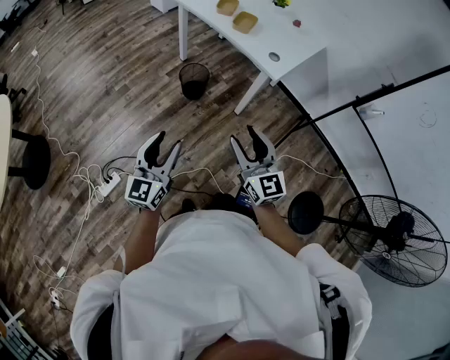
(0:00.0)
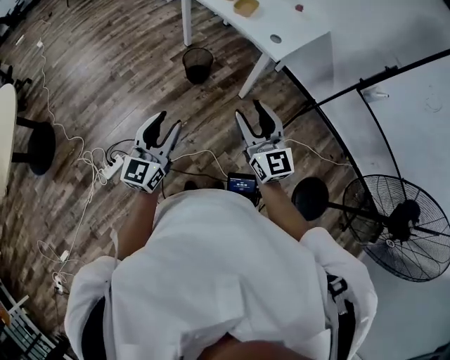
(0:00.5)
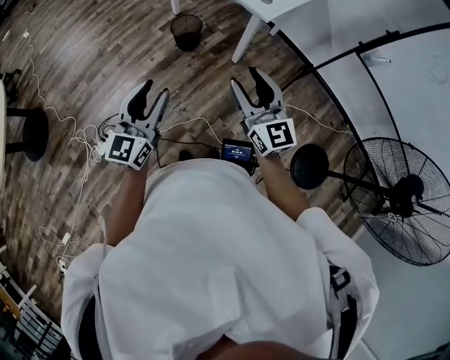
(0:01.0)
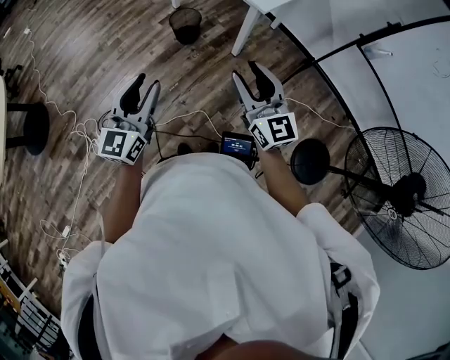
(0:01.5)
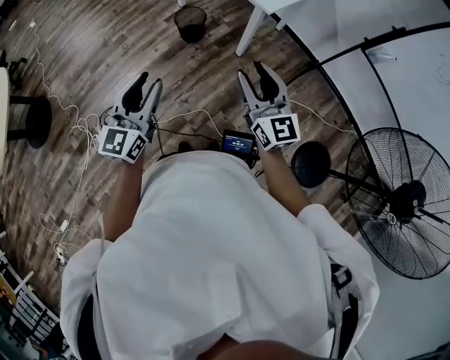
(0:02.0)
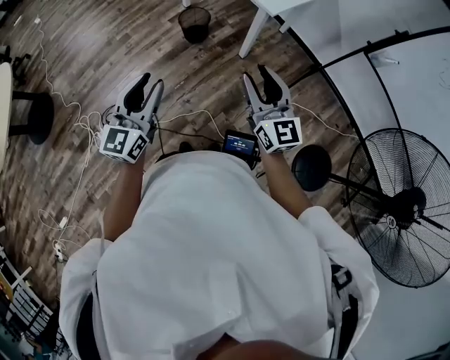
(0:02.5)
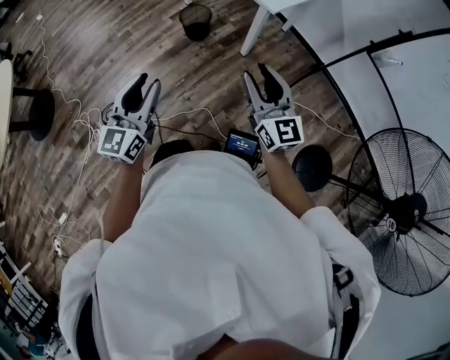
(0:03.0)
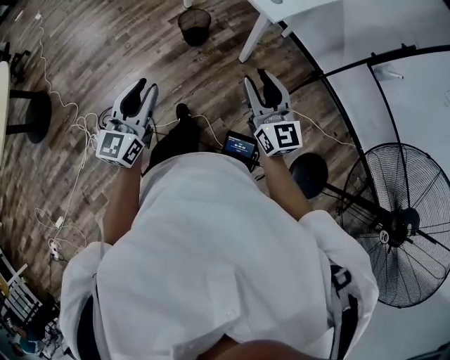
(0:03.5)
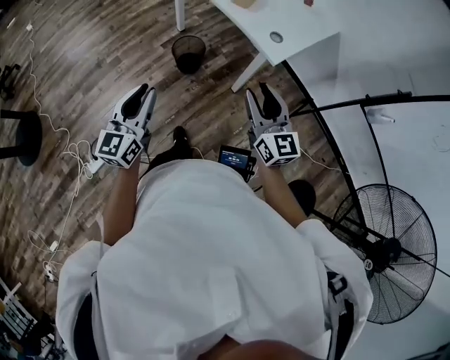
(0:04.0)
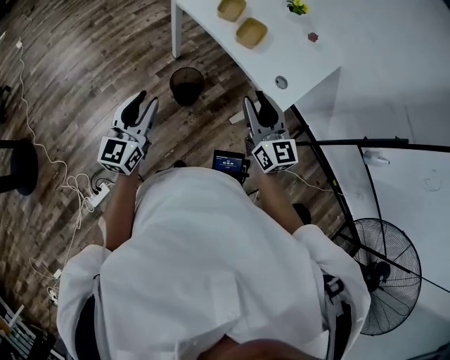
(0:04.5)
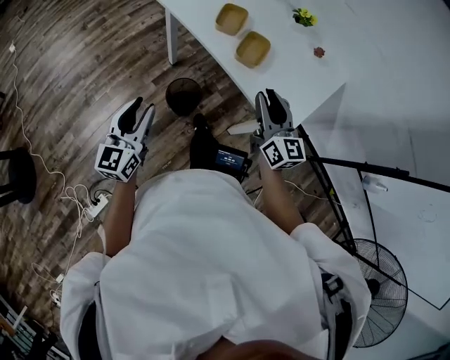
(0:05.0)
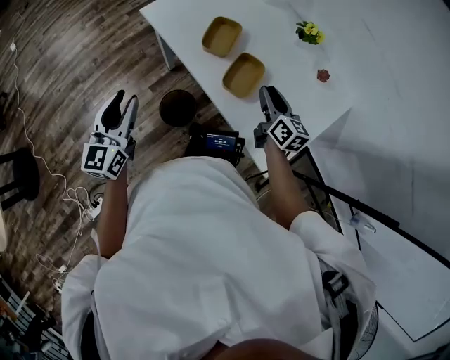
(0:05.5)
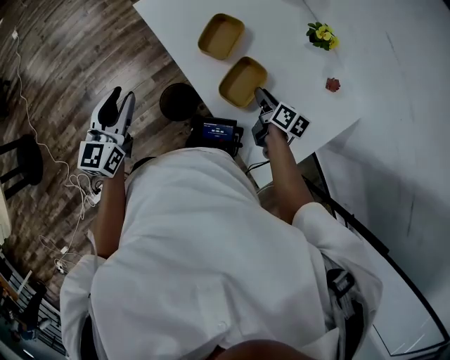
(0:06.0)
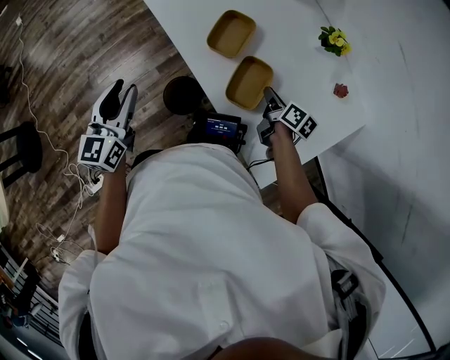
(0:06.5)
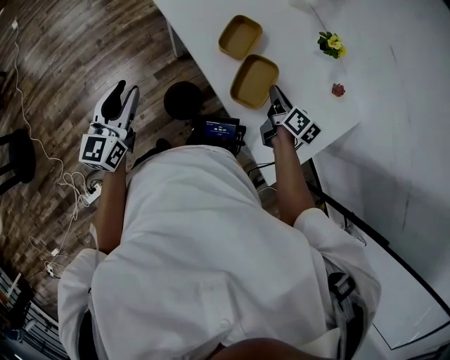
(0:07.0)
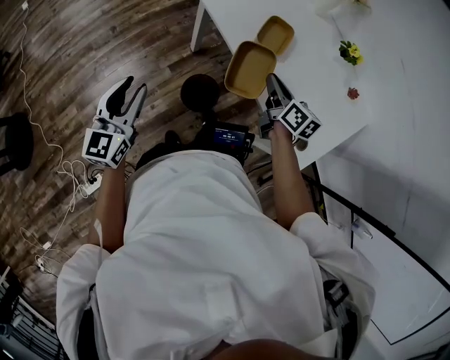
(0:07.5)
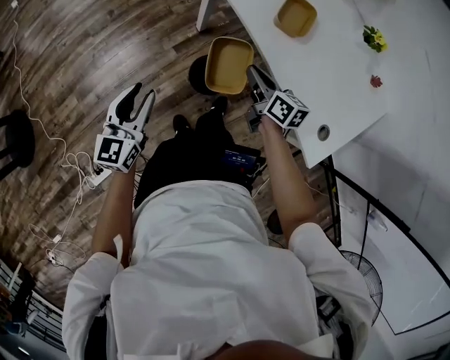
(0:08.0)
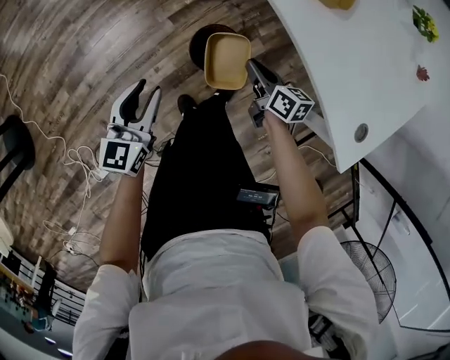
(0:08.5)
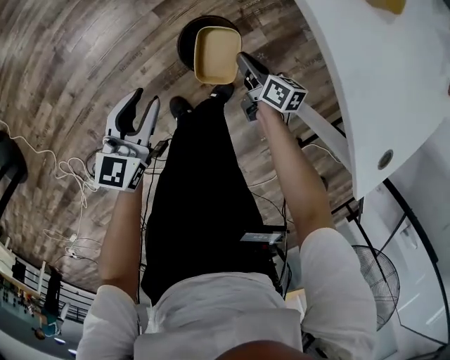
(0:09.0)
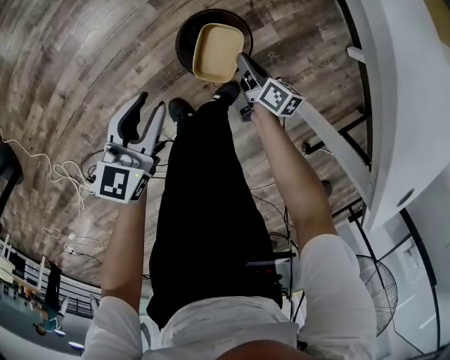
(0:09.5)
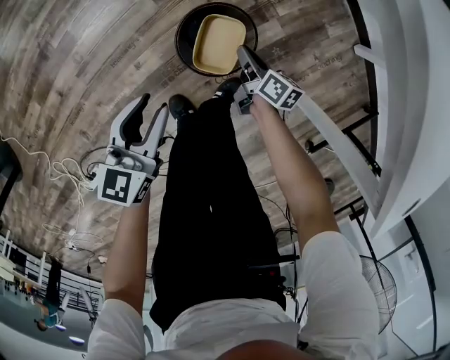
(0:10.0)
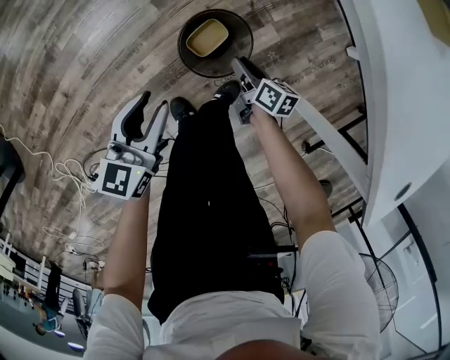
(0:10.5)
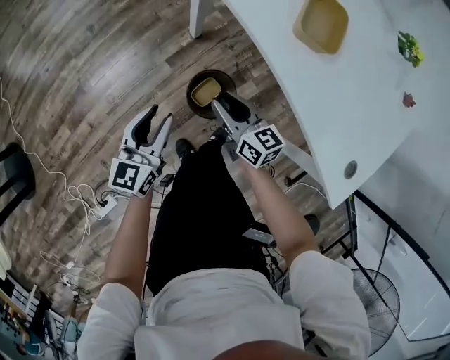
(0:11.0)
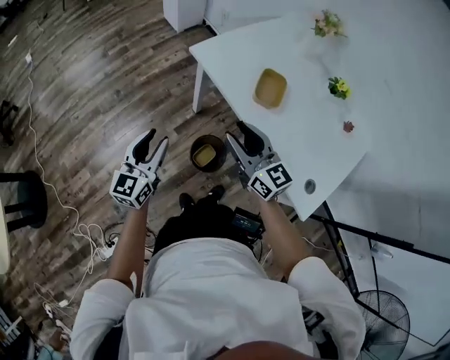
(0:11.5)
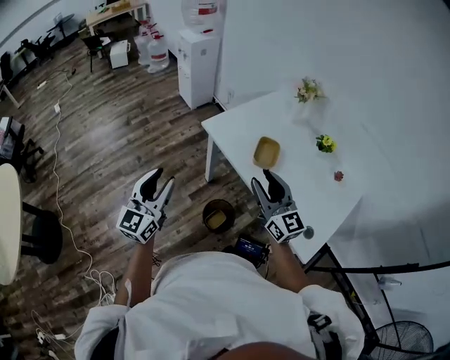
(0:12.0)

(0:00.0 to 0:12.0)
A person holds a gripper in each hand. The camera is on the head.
0:00.0 - 0:02.0: The right gripper goes some 10 cm to the right; the left gripper heads to the right and backward, covering about 10 cm.
0:02.0 - 0:04.0: The two grippers go roughly 20 cm forward.
0:04.0 - 0:06.0: Both grippers are carried forward, approximately 60 cm. The right gripper angles its fingers downward, by some 40 degrees.
0:06.0 - 0:08.0: The left gripper shifts about 25 cm to the left, backward and downward. The right gripper shifts some 30 cm to the left, and closes its fingers.
0:08.0 - 0:10.0: The grippers both shift downward by about 50 cm. The right gripper rotates some 20 degrees.
0:10.0 - 0:12.0: The grippers both shift upward by some 70 cm. The right gripper twists some 60 degrees counterclockwise, seen from behind, and opens. The left gripper tilts its fingers some 30 degrees upward.

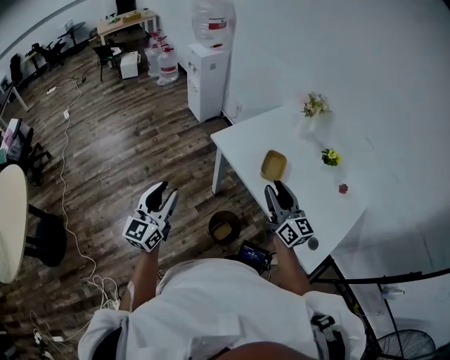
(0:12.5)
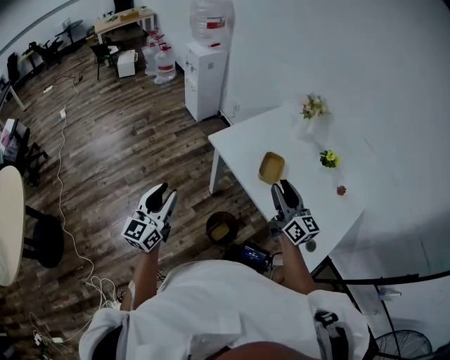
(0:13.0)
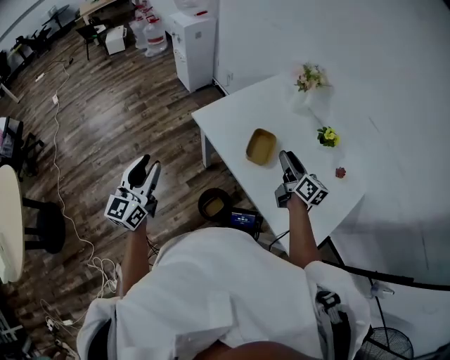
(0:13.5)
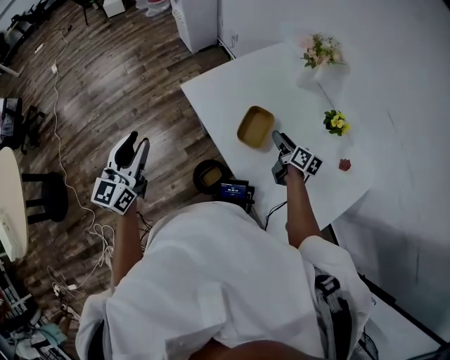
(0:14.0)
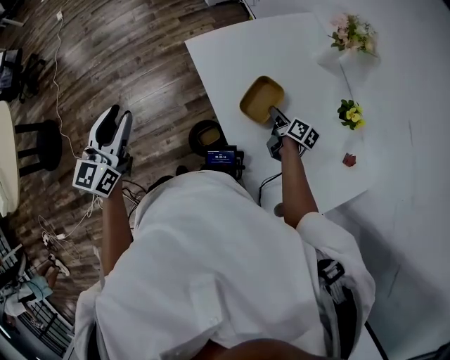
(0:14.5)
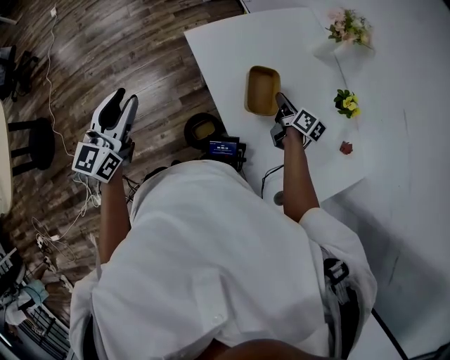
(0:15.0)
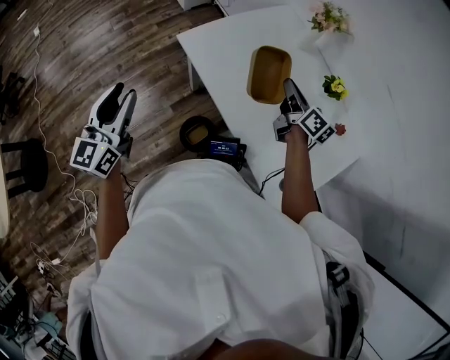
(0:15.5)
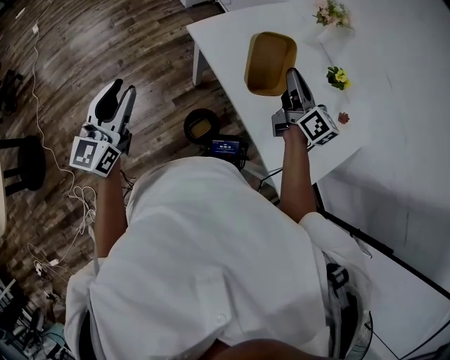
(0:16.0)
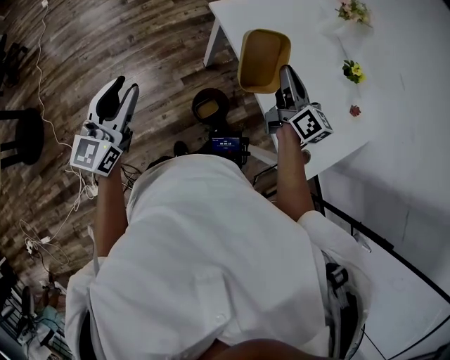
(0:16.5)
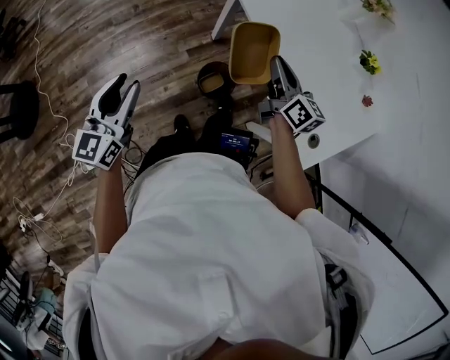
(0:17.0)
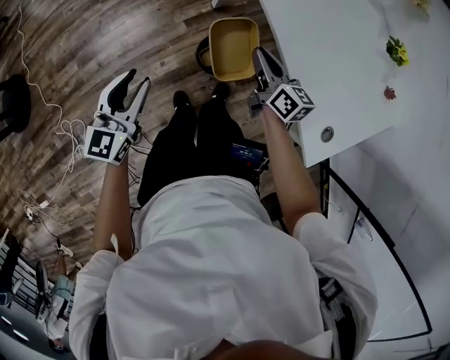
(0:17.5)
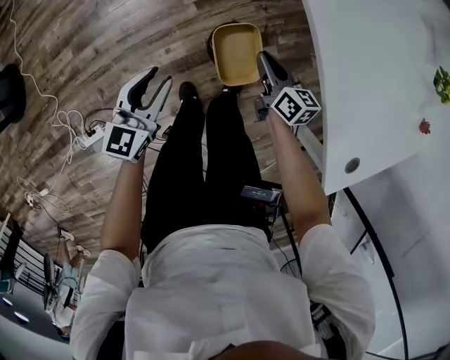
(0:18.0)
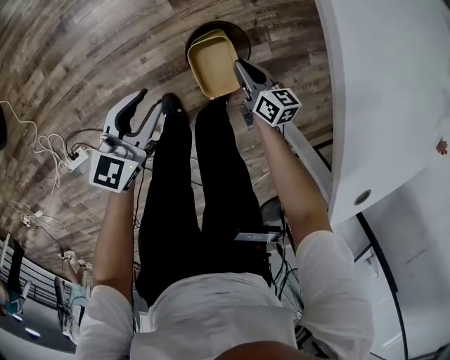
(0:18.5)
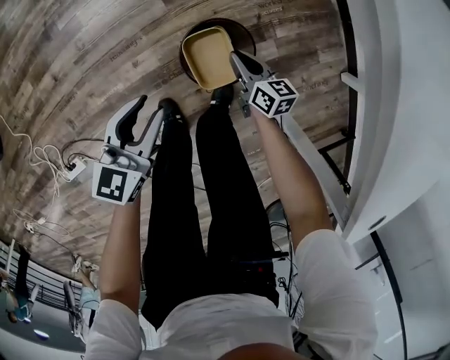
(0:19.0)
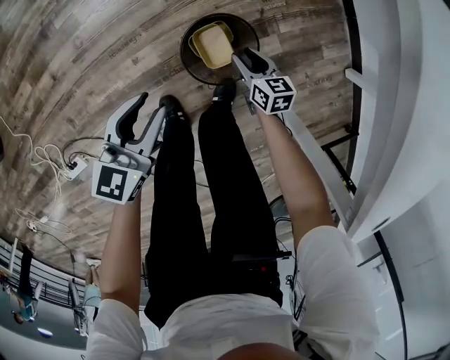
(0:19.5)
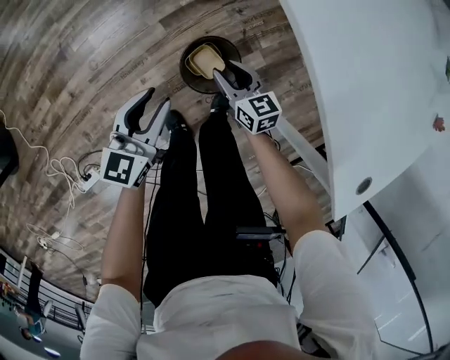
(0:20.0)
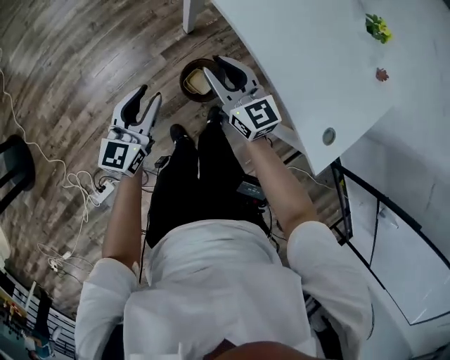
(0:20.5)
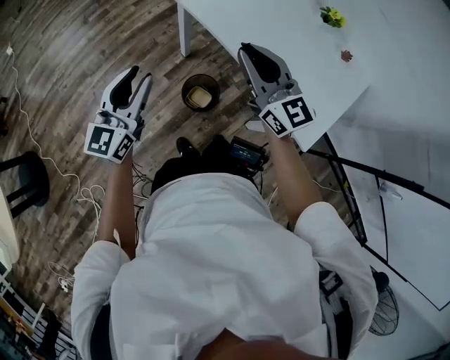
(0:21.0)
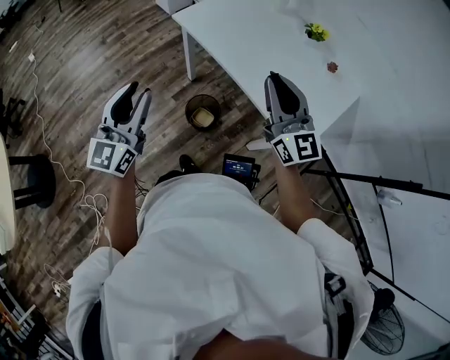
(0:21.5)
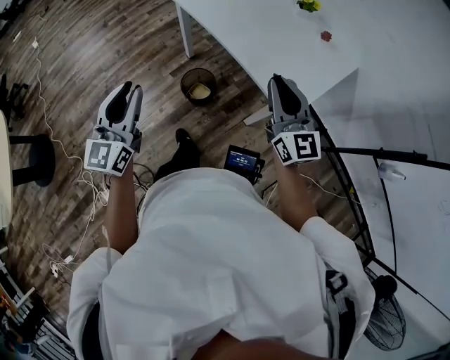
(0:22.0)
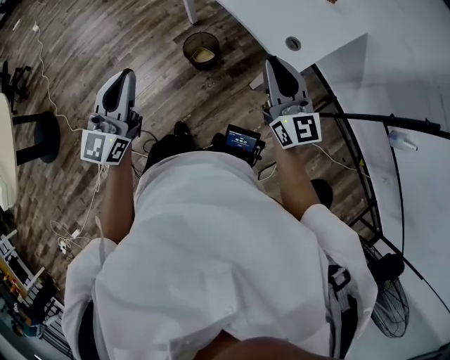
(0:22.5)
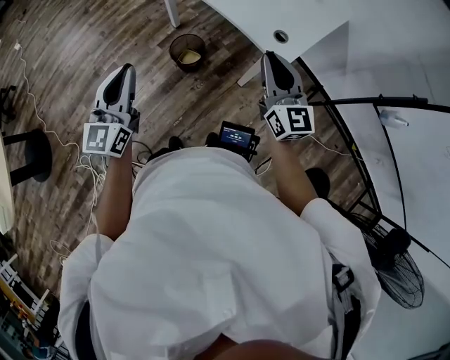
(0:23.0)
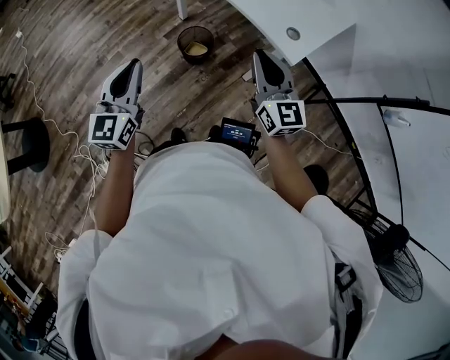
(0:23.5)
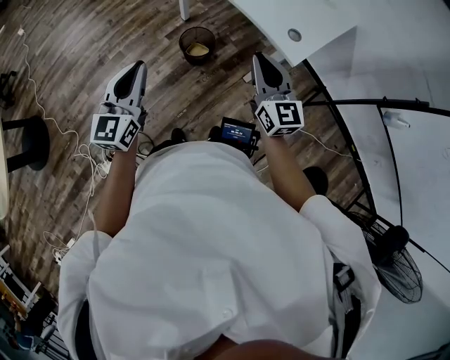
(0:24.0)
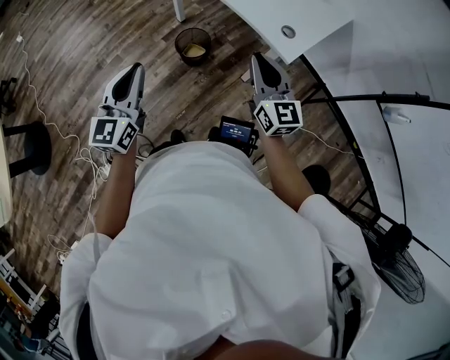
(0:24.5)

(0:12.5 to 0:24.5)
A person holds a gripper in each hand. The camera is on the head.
0:12.5 - 0:14.5: The right gripper travels downward, forward and to the right by about 50 cm, and points its fingers about 40 degrees further downward, while the left gripper shifts some 20 cm forward and to the right, and swivels about 20 degrees.
0:14.5 - 0:16.5: The left gripper shifts approximately 20 cm backward and to the left. Meanwhile the right gripper heads upward, to the left and backward, covering approximately 35 cm, and turns by some 40 degrees.
0:16.5 - 0:18.5: The grippers both shift downward by some 60 cm. The left gripper swivels approximately 30 degrees; the right gripper turns by about 40 degrees.
0:18.5 - 0:20.5: The right gripper heads upward, covering about 40 cm, swivels approximately 40 degrees, and opens up, while the left gripper shifts some 25 cm upward.
0:20.5 - 0:22.5: The left gripper goes some 50 cm backward and upward, swivels roughly 20 degrees, and closes up. Meanwhile the right gripper heads backward, to the right and upward, covering some 50 cm, and swivels about 30 degrees.
0:22.5 - 0:24.5: The right gripper heads to the left, covering roughly 5 cm. Meanwhile the left gripper moves some 5 cm.

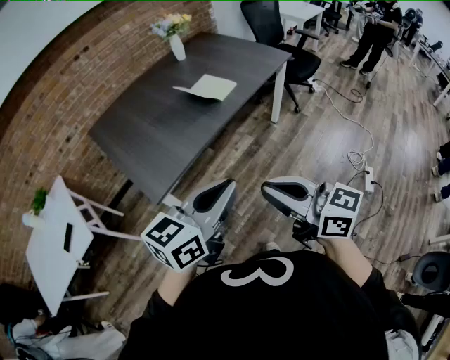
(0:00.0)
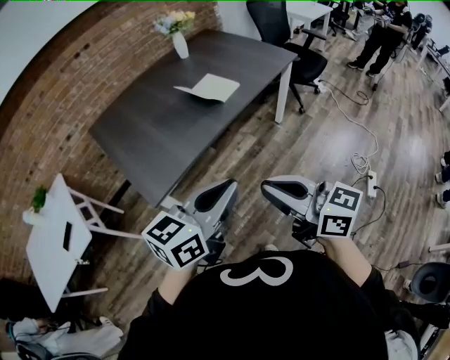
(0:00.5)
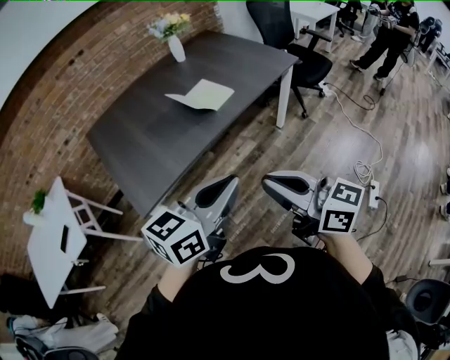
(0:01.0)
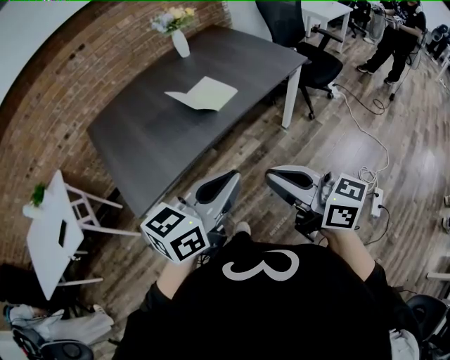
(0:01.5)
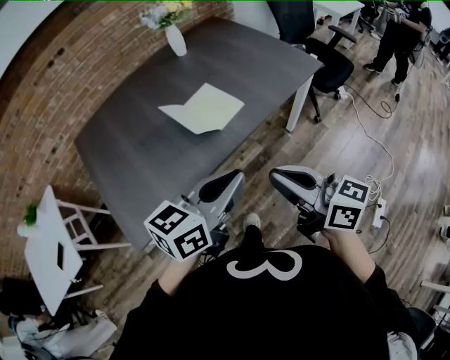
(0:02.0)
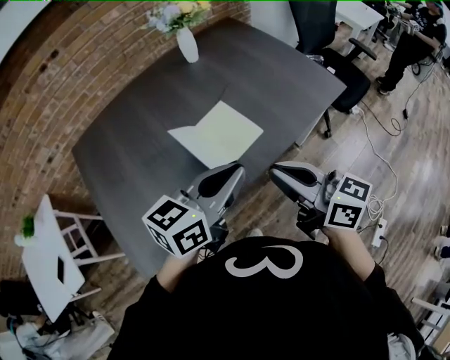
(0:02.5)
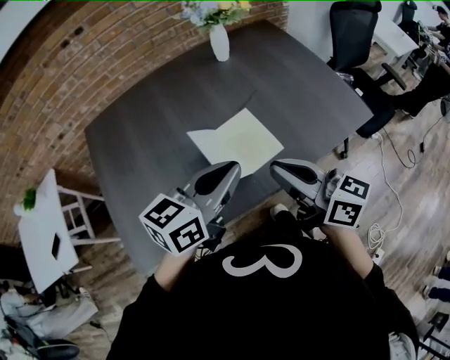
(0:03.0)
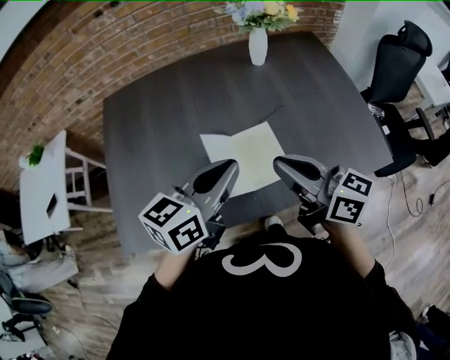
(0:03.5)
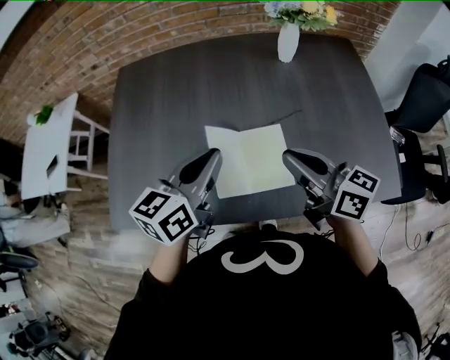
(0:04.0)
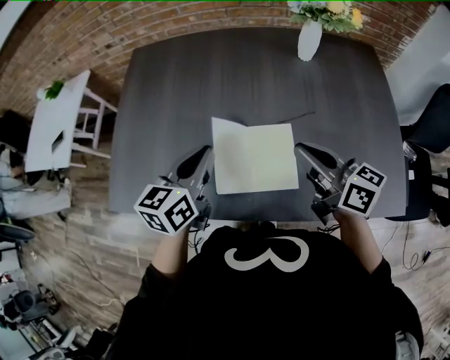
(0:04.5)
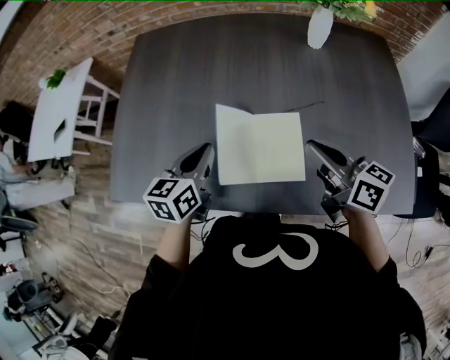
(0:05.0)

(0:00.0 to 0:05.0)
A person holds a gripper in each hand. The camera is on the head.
0:00.0 - 0:02.5: The two grippers travel together, forward, roughly 40 cm.
0:02.5 - 0:05.0: The left gripper ends up approximately 25 cm from where it was, and changes its angle by some 60 degrees; the right gripper ends up roughly 25 cm from where it was, and rotates about 40 degrees.
